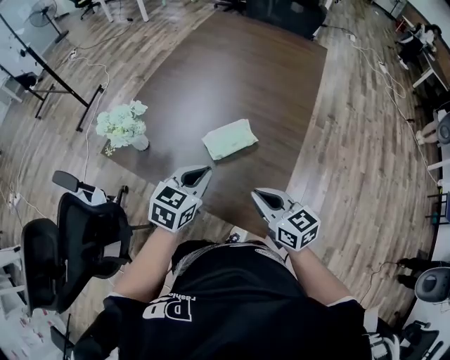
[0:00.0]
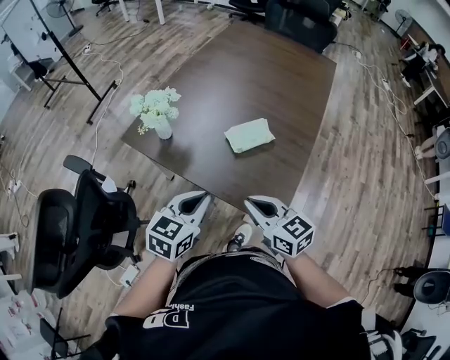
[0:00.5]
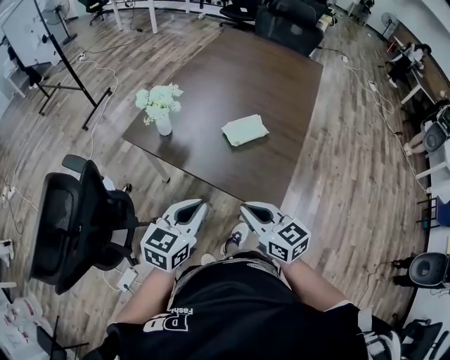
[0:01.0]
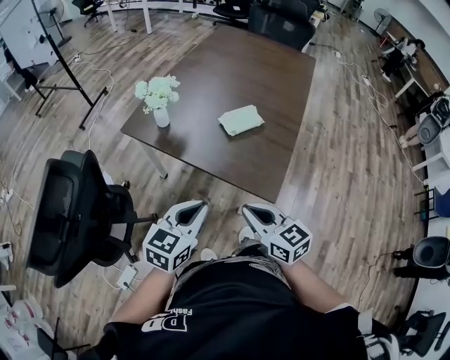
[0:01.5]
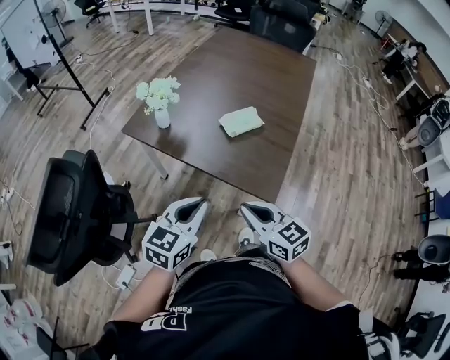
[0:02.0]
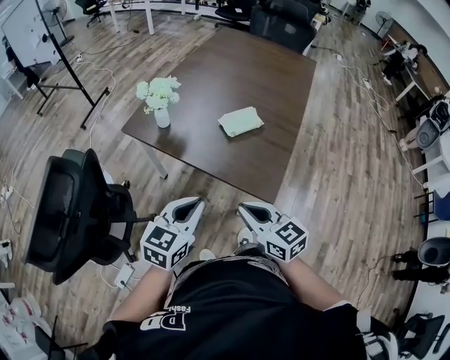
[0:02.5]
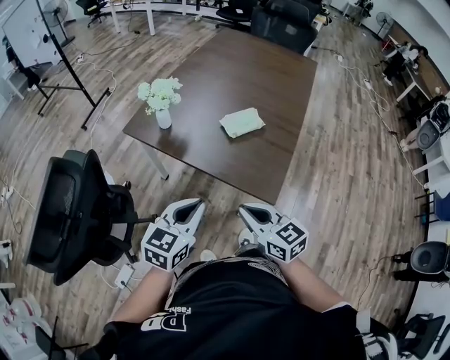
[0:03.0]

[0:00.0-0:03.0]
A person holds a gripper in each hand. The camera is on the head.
0:00.0 to 0:01.5: Both grippers move backward and to the left, approximately 25 cm.
0:01.5 to 0:03.0: Both grippers stay about where they are.

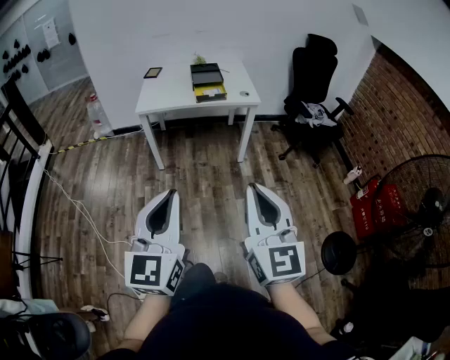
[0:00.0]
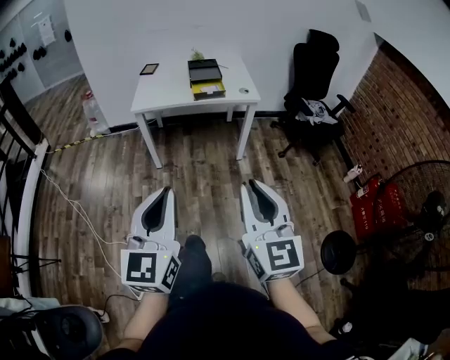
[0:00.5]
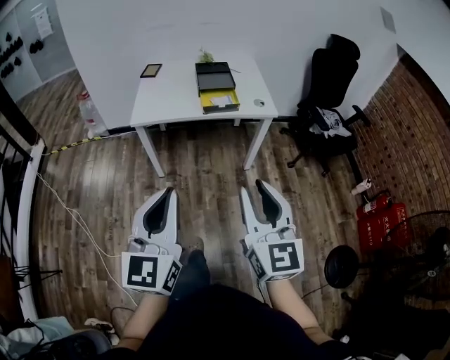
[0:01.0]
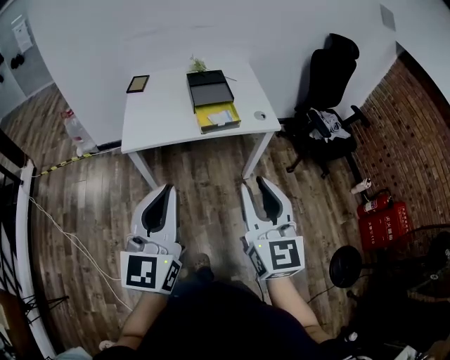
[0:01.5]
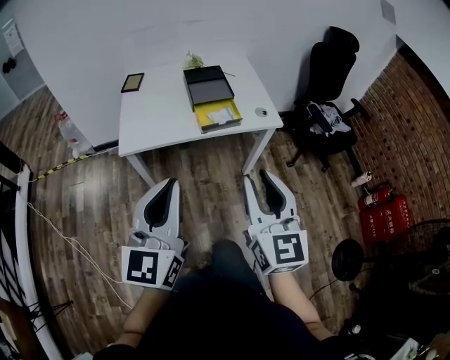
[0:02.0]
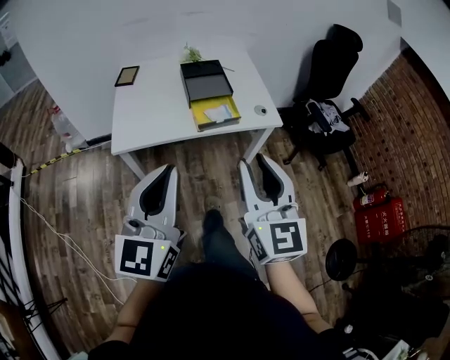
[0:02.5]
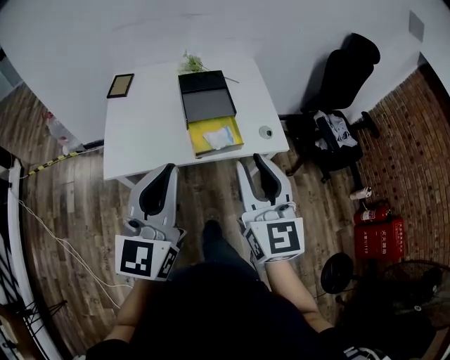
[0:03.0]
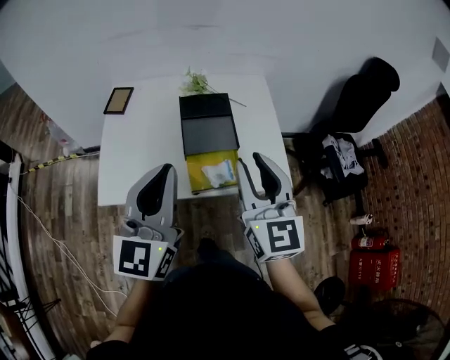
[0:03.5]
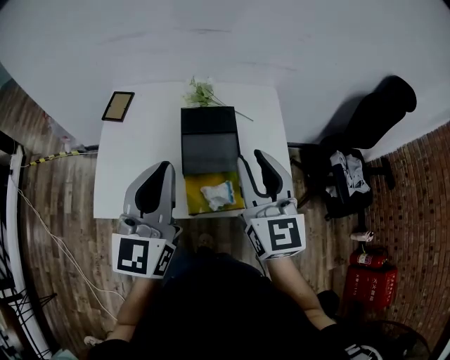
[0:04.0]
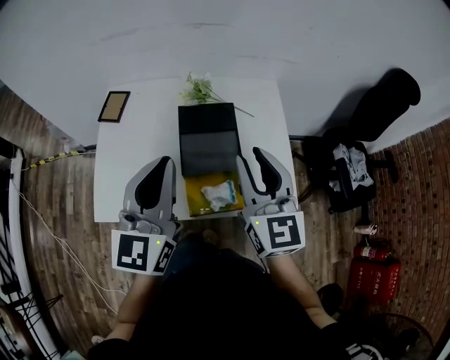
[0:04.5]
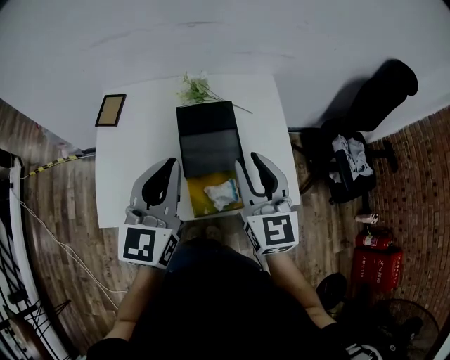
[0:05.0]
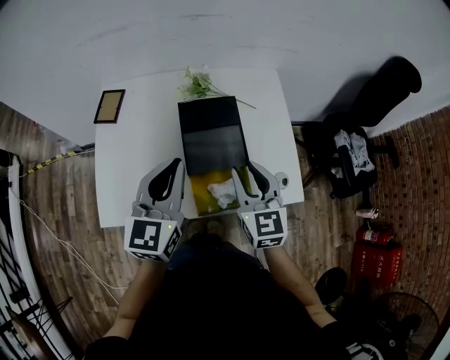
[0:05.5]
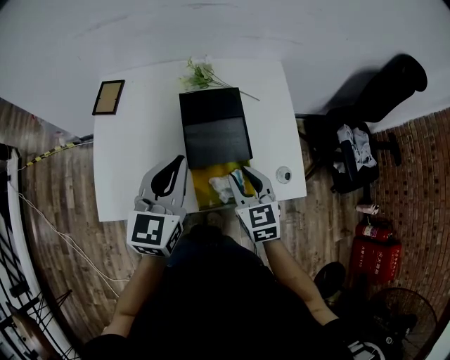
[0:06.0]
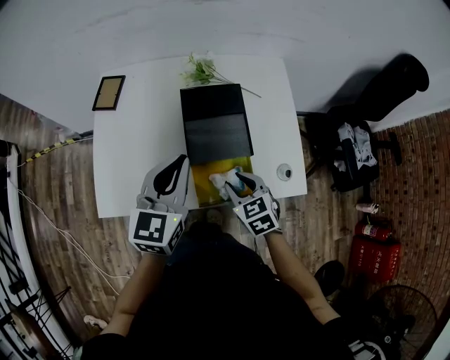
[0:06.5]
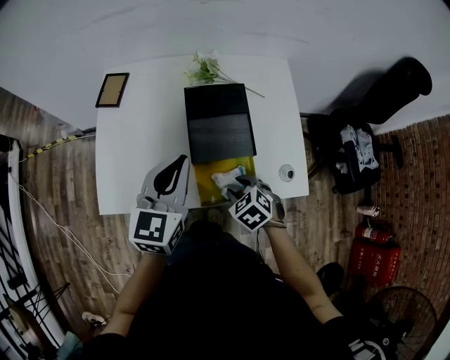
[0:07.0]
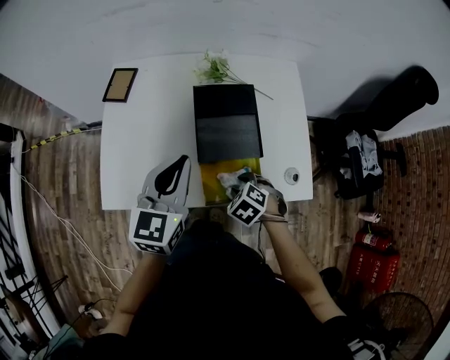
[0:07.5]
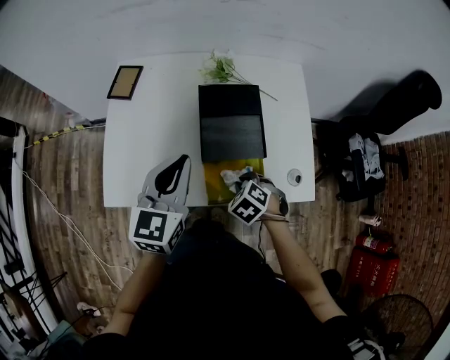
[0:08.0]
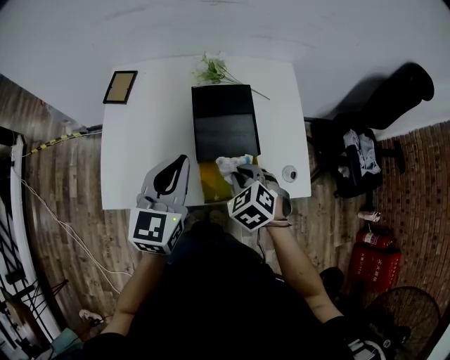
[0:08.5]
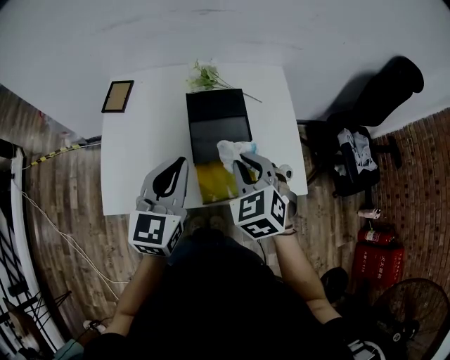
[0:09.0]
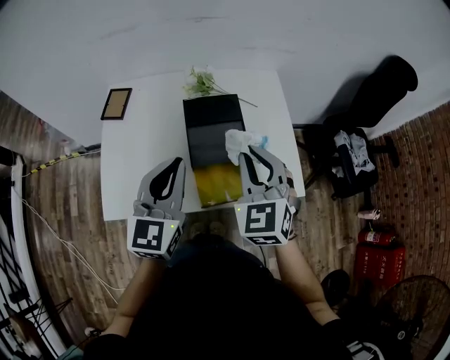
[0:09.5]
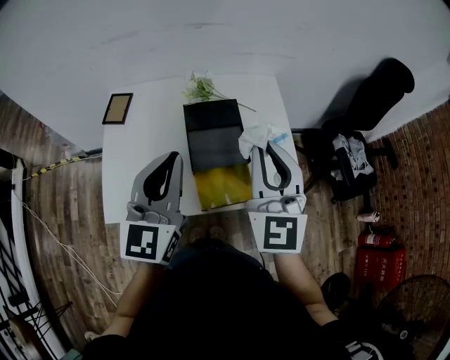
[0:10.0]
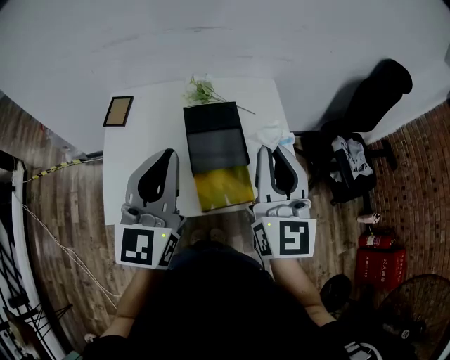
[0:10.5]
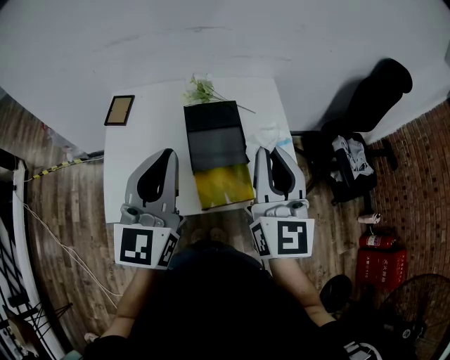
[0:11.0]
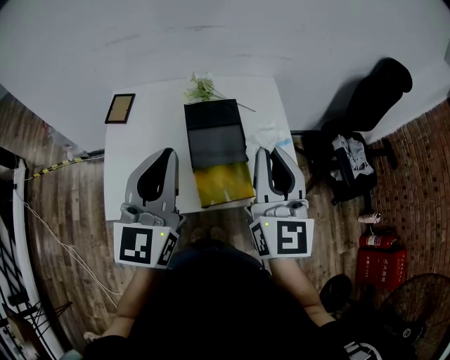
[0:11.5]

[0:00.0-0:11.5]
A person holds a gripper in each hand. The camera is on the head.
0:00.0 to 0:02.0: The pair of grippers is taken forward, roughly 40 cm. The right gripper opens its fingers.
0:02.0 to 0:04.0: Both grippers are carried forward, approximately 40 cm.
0:04.0 to 0:06.0: The right gripper shifts roughly 20 cm downward, and changes its angle by some 30 degrees, while the left gripper travels downward and forward by roughly 15 cm.
0:06.0 to 0:07.5: The right gripper shifts approximately 10 cm downward, and tilts its fingers approximately 40 degrees downward.
0:07.5 to 0:09.5: The left gripper heads upward, covering about 5 cm. Meanwhile the right gripper moves upward, approximately 25 cm, angles its fingers upward, by approximately 50 degrees, and closes up.
0:09.5 to 0:11.5: Both grippers move upward, approximately 10 cm. The right gripper swivels approximately 40 degrees.

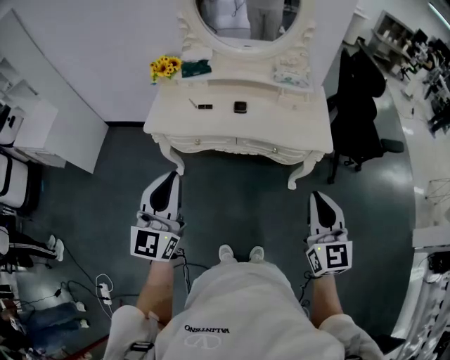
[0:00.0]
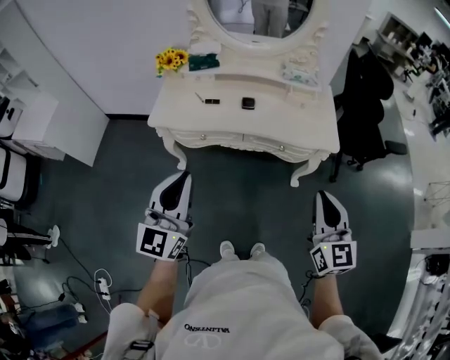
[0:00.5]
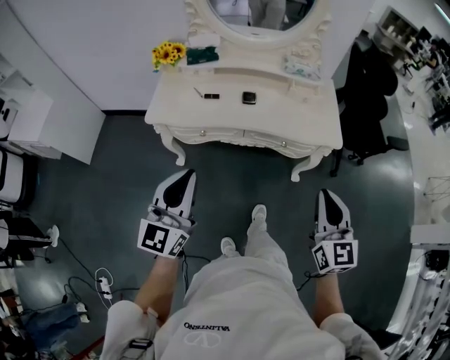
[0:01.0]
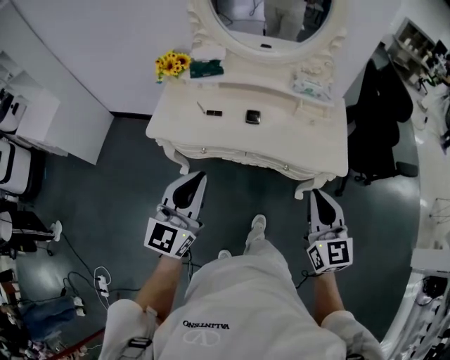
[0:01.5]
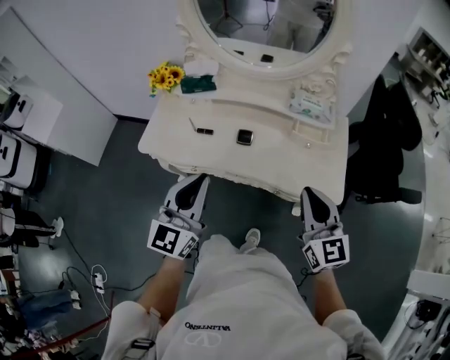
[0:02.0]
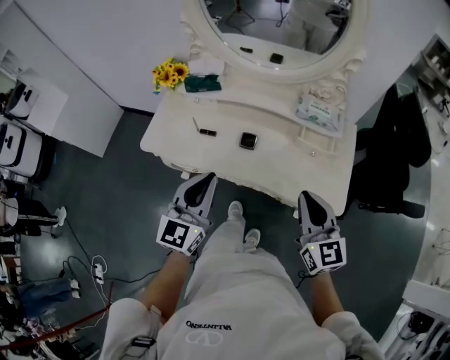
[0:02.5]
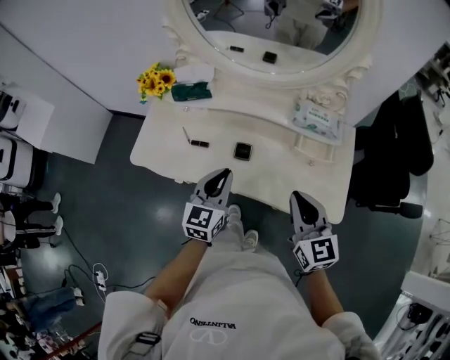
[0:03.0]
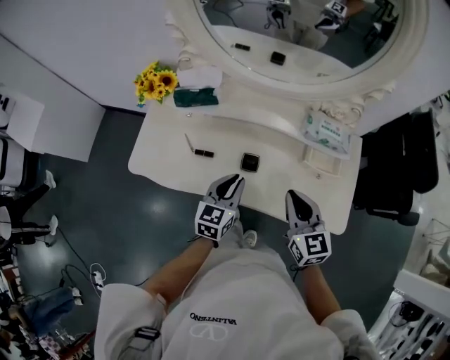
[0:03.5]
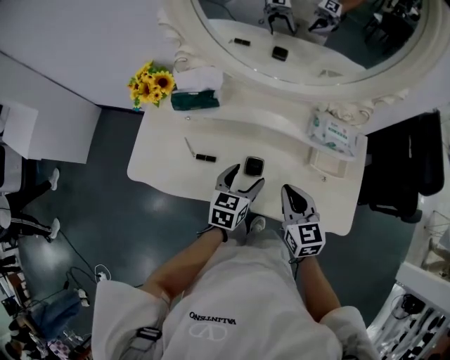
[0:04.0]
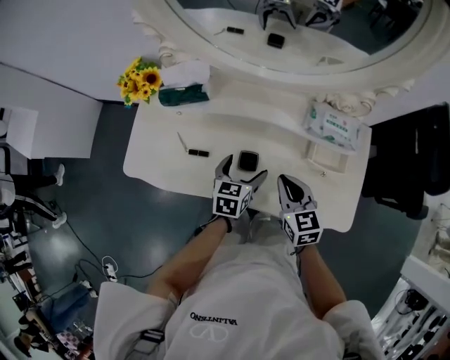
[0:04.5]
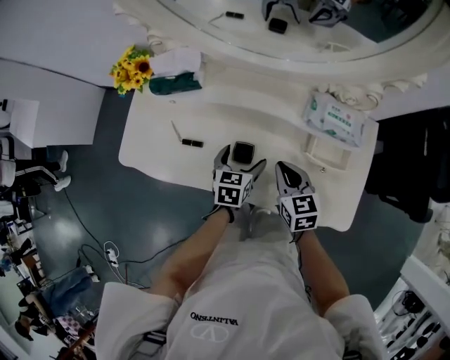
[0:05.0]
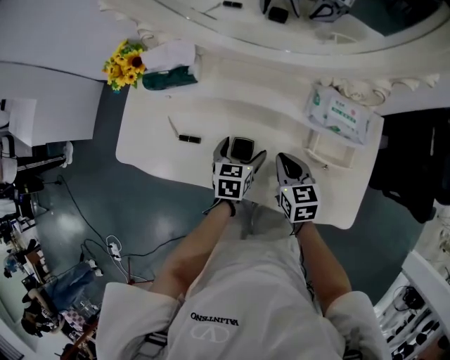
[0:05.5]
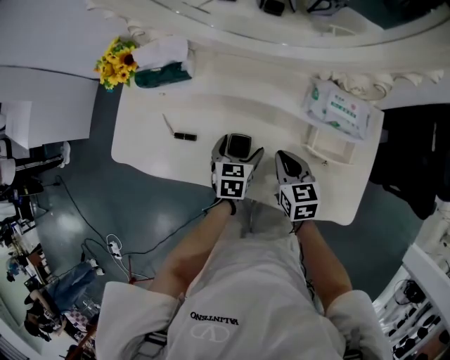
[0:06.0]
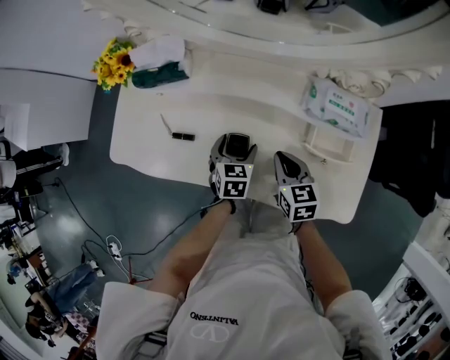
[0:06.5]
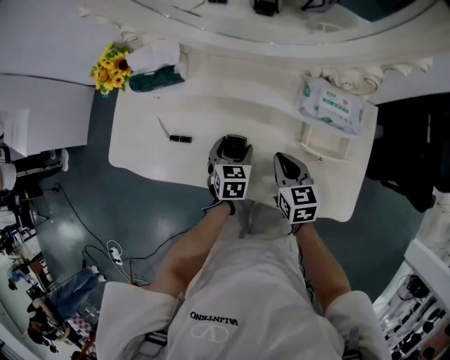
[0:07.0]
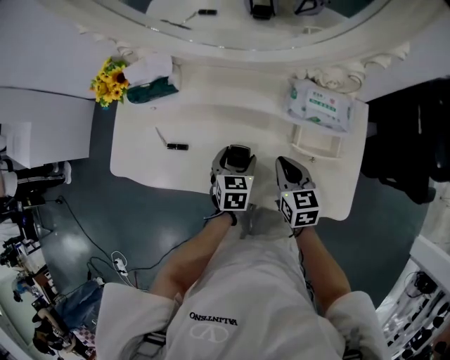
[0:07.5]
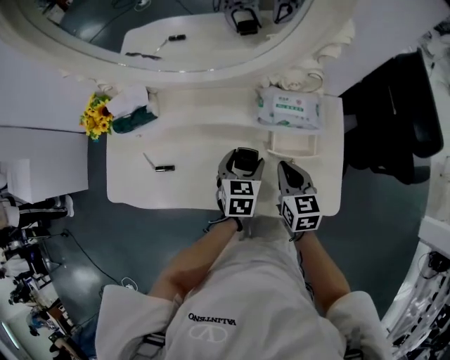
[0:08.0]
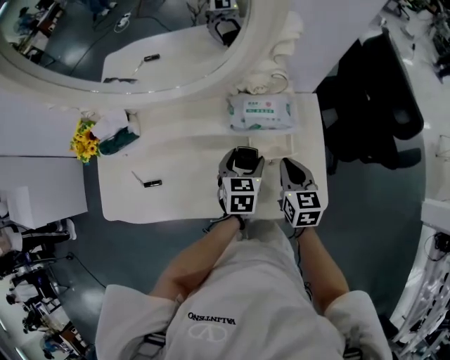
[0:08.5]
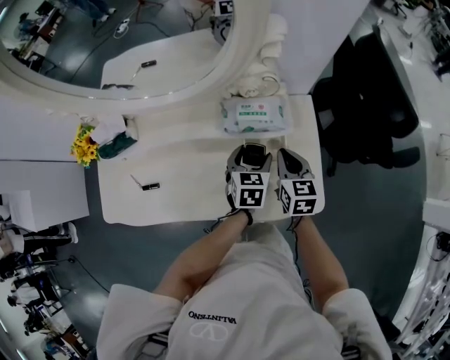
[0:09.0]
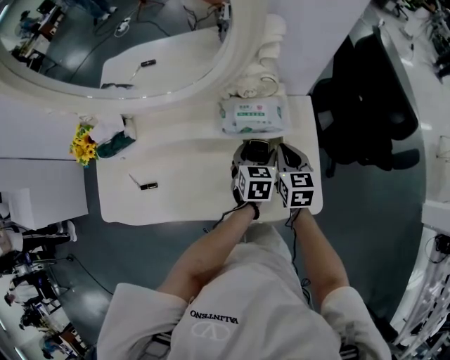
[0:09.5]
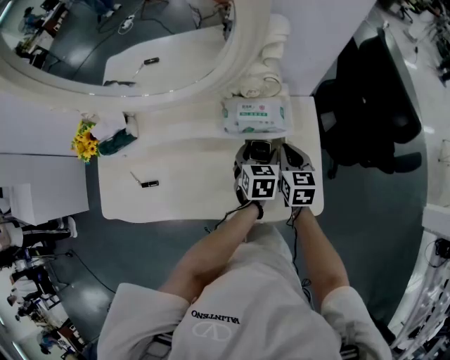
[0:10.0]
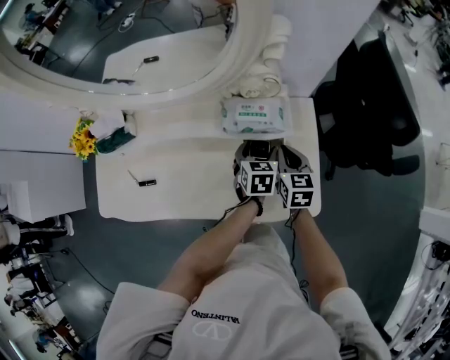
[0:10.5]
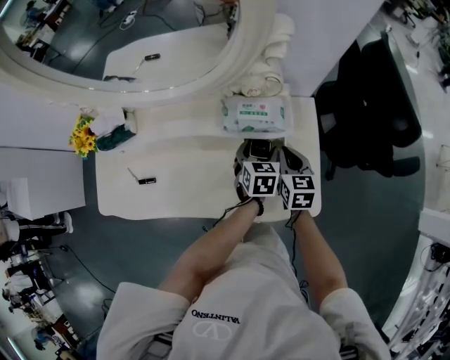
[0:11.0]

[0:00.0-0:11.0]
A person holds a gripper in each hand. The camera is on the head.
0:00.0 to 0:02.0: The left gripper goes approximately 25 cm forward and to the right. The right gripper moves forward, some 25 cm.
0:02.0 to 0:03.5: The right gripper is displaced forward and downward by approximately 20 cm; the left gripper goes some 30 cm downward and forward, and turns by approximately 30 degrees.
0:03.5 to 0:05.5: The grippers both shift downward and forward by roughly 15 cm. The right gripper rotates some 20 degrees, while the left gripper swivels approximately 20 degrees, and opens up.
0:05.5 to 0:07.5: The grippers move only a little.
0:07.5 to 0:09.0: Both grippers move to the right, about 20 cm. The right gripper swivels roughly 20 degrees.
0:09.0 to 0:11.0: There are only small adjustments of the grippers.

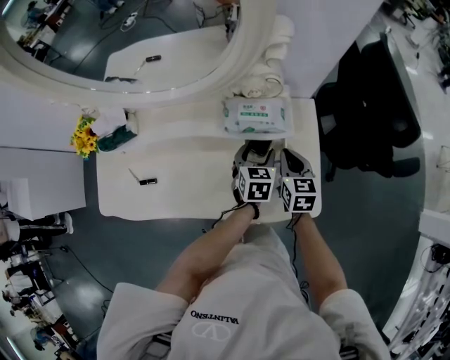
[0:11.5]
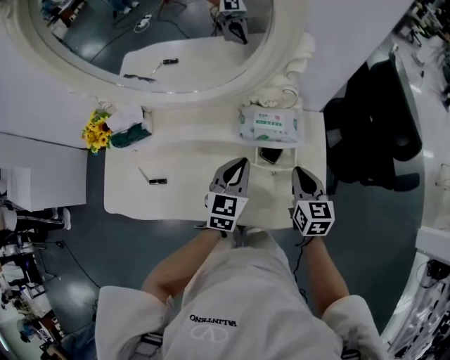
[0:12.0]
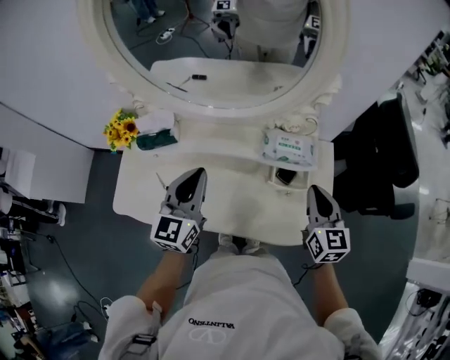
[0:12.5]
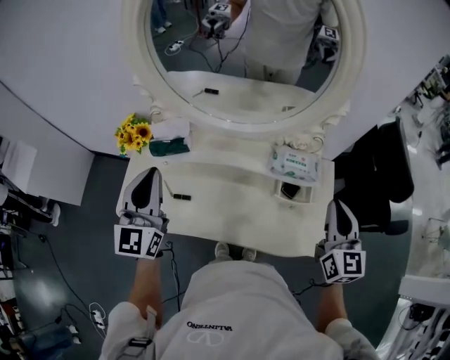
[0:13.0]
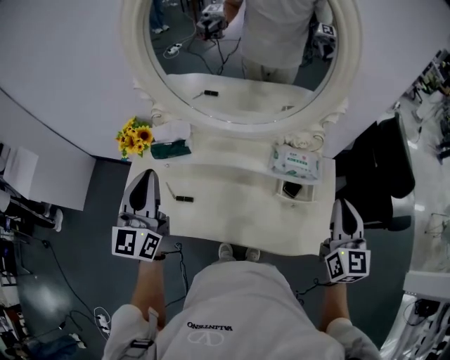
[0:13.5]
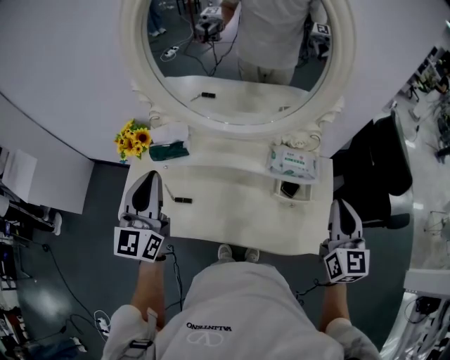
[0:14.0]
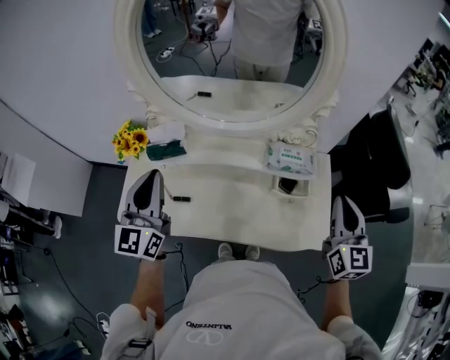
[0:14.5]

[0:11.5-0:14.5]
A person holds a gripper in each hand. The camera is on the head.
0:11.5 to 0:13.0: The right gripper travels upward by about 25 cm, and changes its angle by some 30 degrees. Meanwhile the left gripper shifts about 50 cm to the left and upward, points its fingers some 50 degrees further upward, and closes up.
0:13.0 to 0:14.5: The grippers make only small movements.
